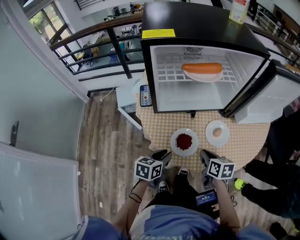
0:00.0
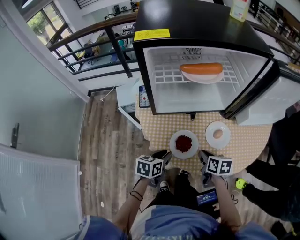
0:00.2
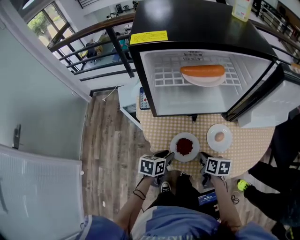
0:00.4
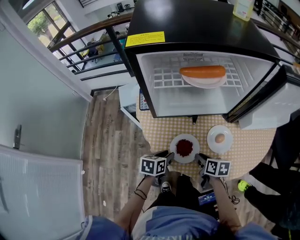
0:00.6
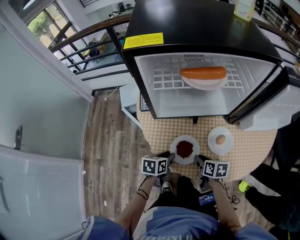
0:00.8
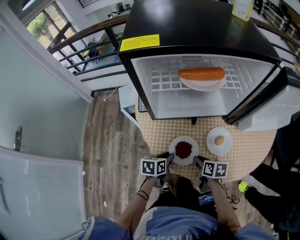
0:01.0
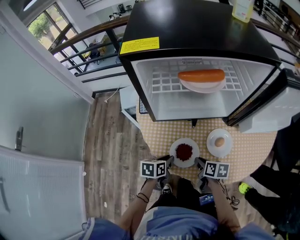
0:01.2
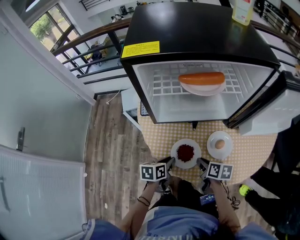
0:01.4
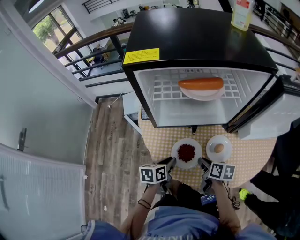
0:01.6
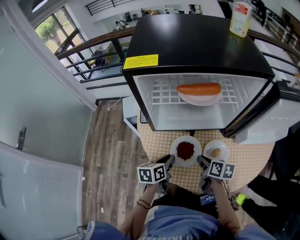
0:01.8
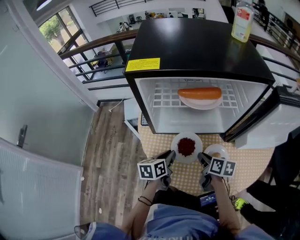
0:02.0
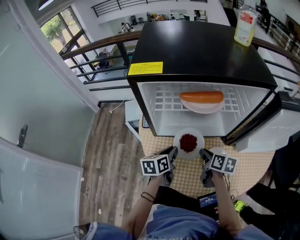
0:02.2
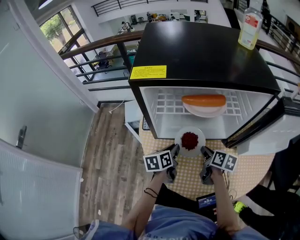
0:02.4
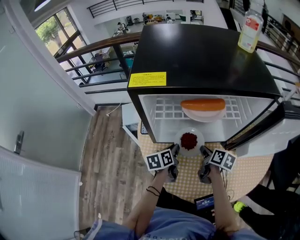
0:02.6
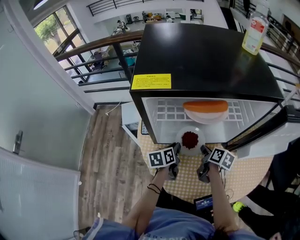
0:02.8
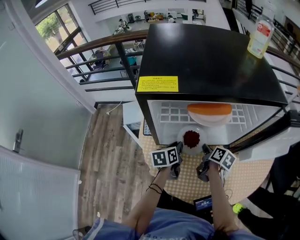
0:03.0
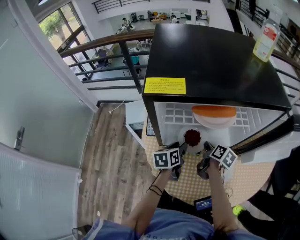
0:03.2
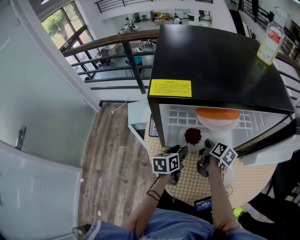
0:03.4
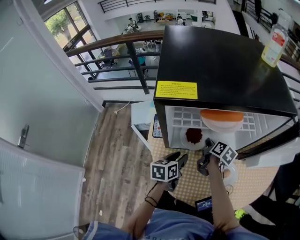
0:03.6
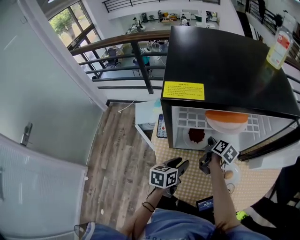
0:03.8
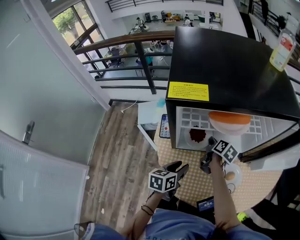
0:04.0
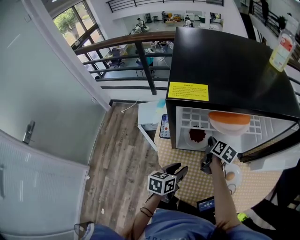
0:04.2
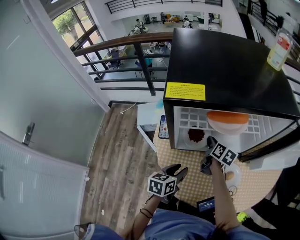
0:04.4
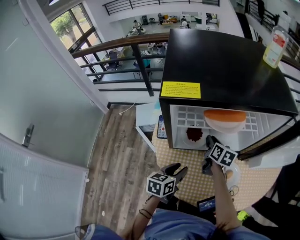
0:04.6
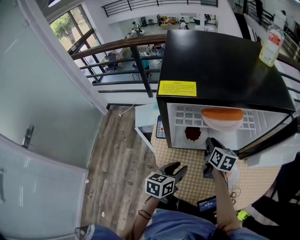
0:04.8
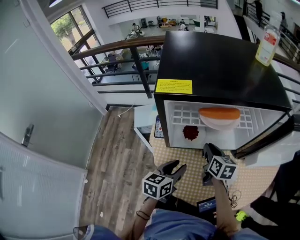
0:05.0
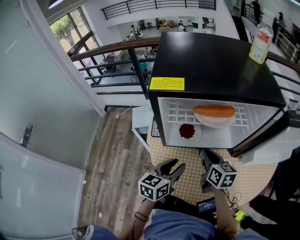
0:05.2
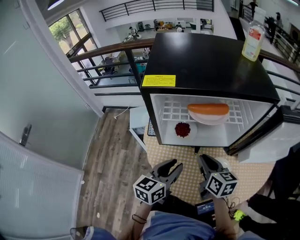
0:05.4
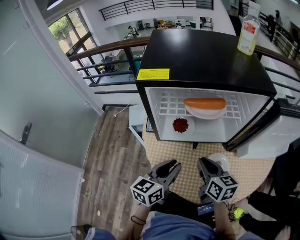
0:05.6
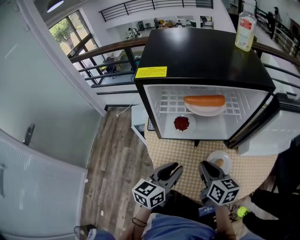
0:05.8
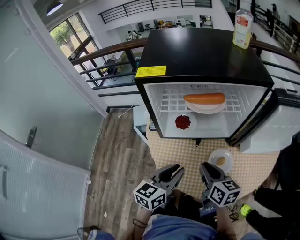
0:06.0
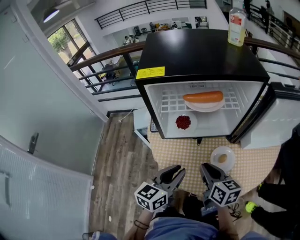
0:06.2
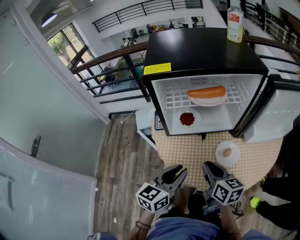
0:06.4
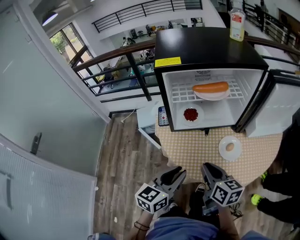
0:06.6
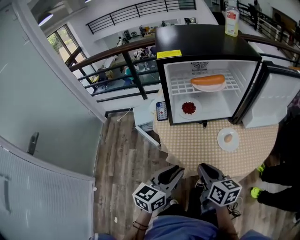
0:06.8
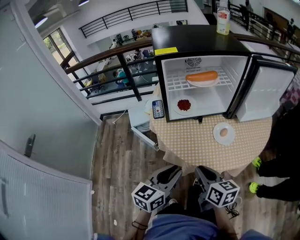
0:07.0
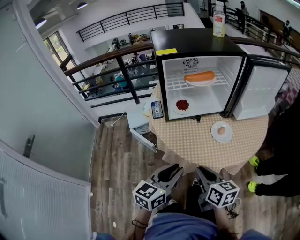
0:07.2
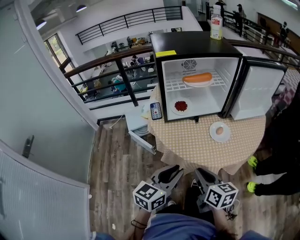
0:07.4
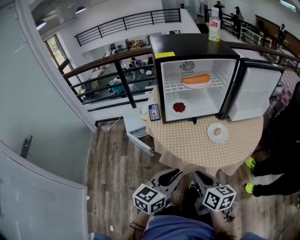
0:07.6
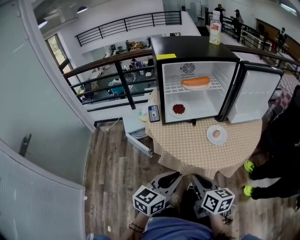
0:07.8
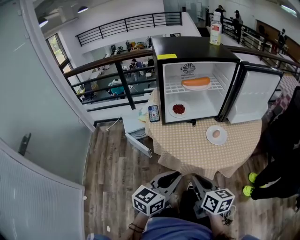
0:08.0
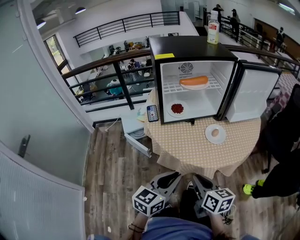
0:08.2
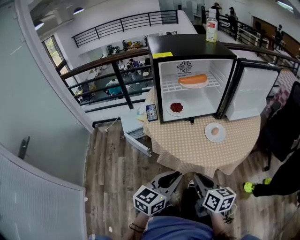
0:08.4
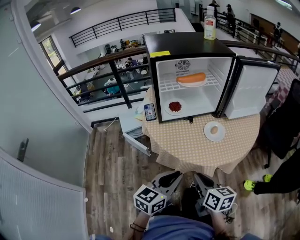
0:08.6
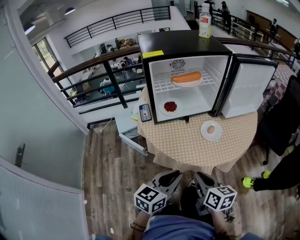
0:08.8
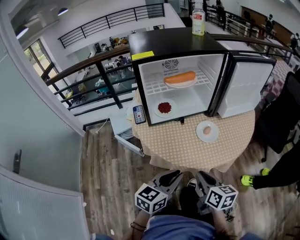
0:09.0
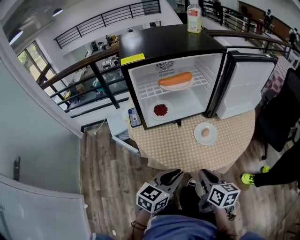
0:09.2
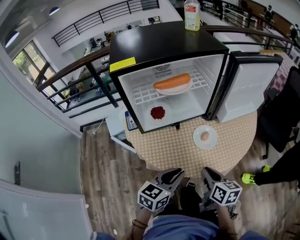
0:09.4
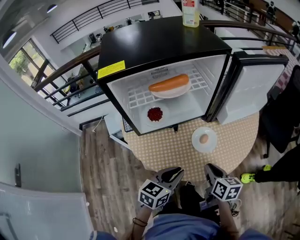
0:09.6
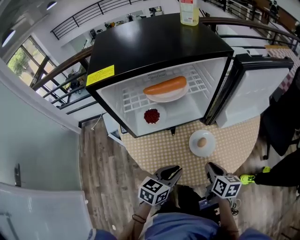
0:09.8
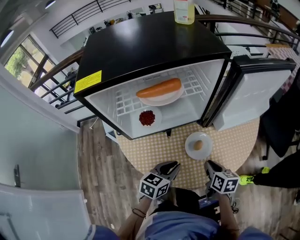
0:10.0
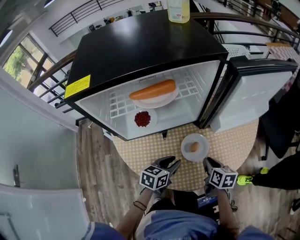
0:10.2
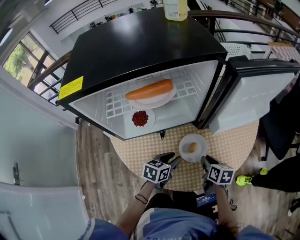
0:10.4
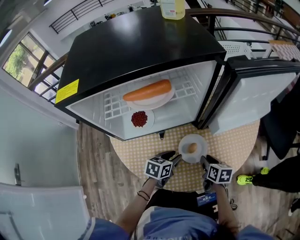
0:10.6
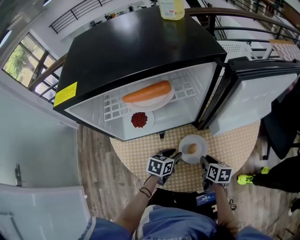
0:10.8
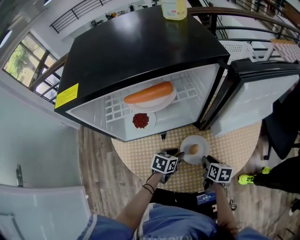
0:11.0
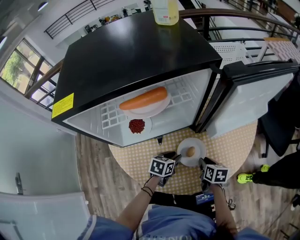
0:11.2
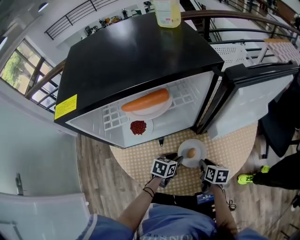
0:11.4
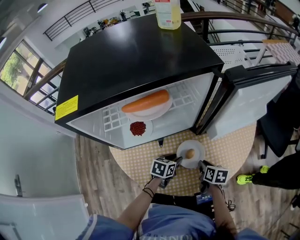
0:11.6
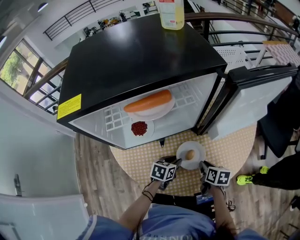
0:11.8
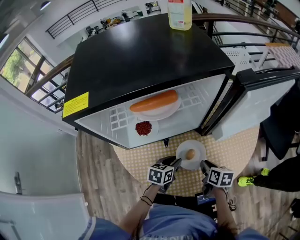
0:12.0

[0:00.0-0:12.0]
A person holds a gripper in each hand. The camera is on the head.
0:00.0 to 0:01.6: The grippers both shift forward by approximately 5 cm.
0:01.6 to 0:03.0: The grippers both shift forward by some 15 cm. The right gripper swivels about 20 degrees.
0:03.0 to 0:04.4: The right gripper travels to the left and forward by roughly 10 cm. The left gripper heads backward, covering some 10 cm, and opens.
0:04.4 to 0:06.0: The right gripper is displaced backward and upward by approximately 25 cm, and turns by roughly 20 degrees. Meanwhile the left gripper heads upward, backward and to the right, covering about 15 cm, and rotates roughly 20 degrees.
0:06.0 to 0:07.6: Both grippers travel together backward, approximately 20 cm.
0:07.6 to 0:09.0: The right gripper is displaced to the right by some 5 cm; the left gripper changes place by approximately 5 cm.
0:09.0 to 0:10.4: The left gripper shifts about 30 cm forward and downward, swivels roughly 30 degrees, and opens up, while the right gripper moves forward, downward and to the right, roughly 30 cm.
0:10.4 to 0:12.0: The grippers make only small movements.

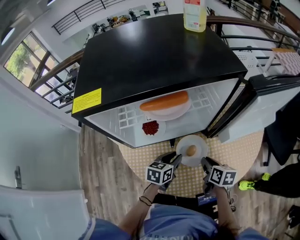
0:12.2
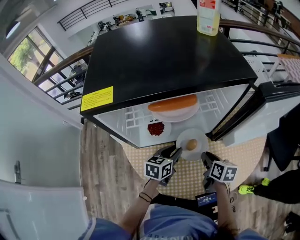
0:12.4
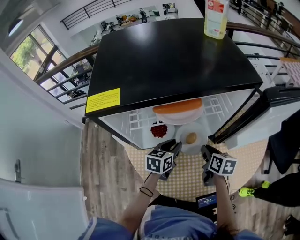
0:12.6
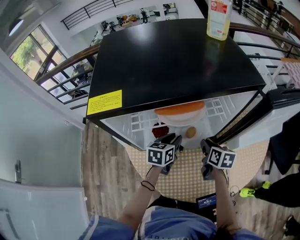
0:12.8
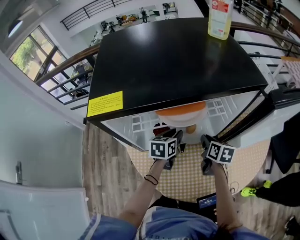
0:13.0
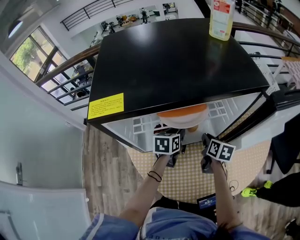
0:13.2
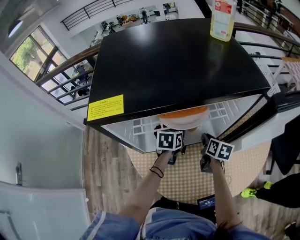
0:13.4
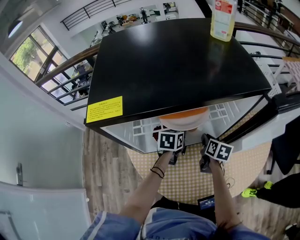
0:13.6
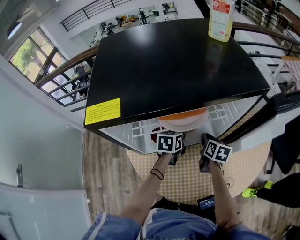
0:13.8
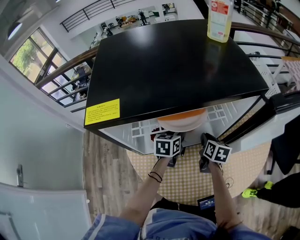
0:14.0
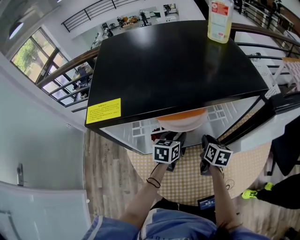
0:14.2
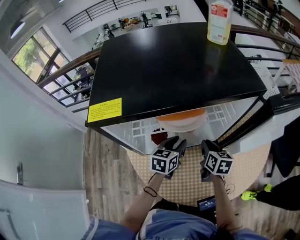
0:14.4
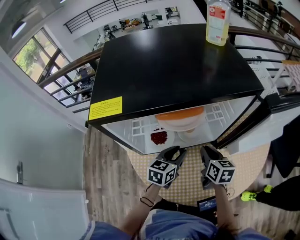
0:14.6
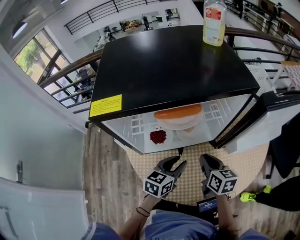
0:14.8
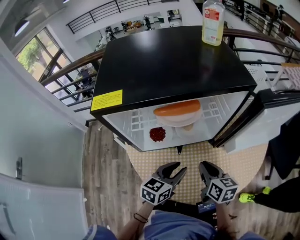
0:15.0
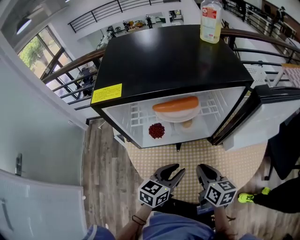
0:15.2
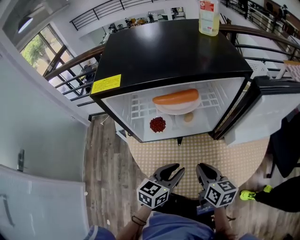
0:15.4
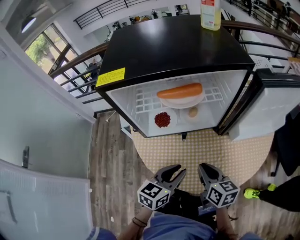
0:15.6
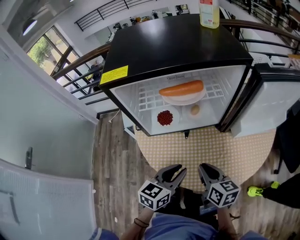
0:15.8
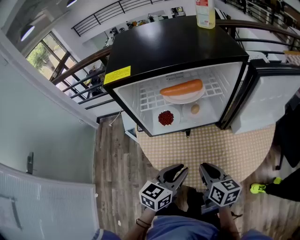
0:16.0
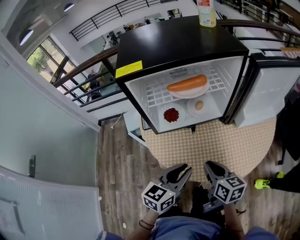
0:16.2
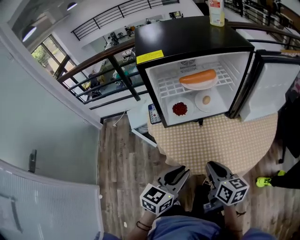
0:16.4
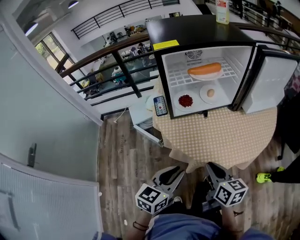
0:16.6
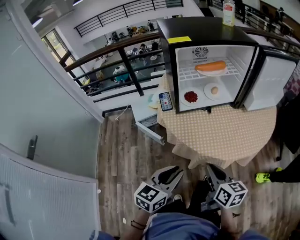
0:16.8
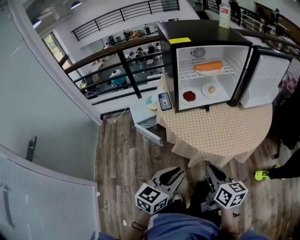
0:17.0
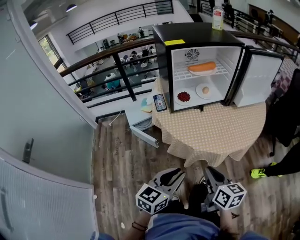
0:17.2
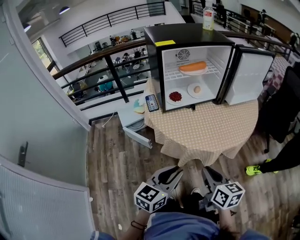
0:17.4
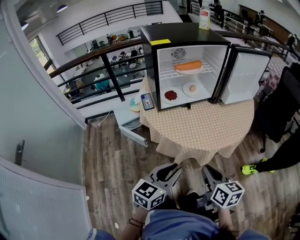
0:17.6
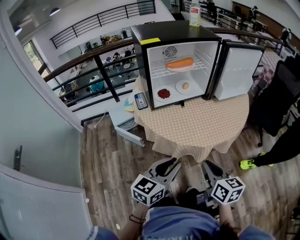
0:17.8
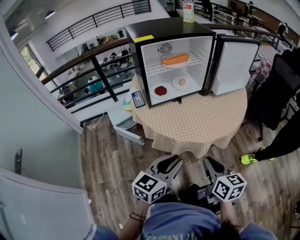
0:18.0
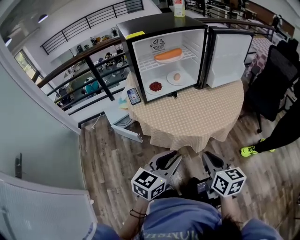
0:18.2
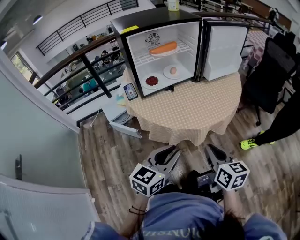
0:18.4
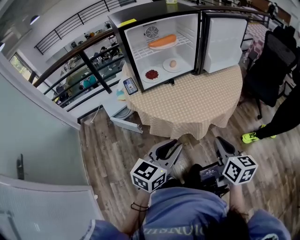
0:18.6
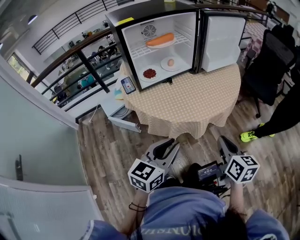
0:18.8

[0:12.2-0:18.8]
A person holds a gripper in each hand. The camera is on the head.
0:12.2 to 0:13.8: The right gripper goes about 15 cm forward and to the left. The left gripper shifts about 15 cm forward.
0:13.8 to 0:15.4: The right gripper heads backward and upward, covering about 25 cm, and turns by some 20 degrees. Meanwhile the left gripper goes approximately 25 cm backward.
0:15.4 to 0:17.2: The grippers both shift backward and to the left by roughly 35 cm.
0:17.2 to 0:18.8: The left gripper shifts roughly 5 cm to the right; the right gripper shifts approximately 15 cm to the right, and rotates roughly 20 degrees.

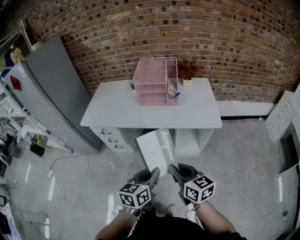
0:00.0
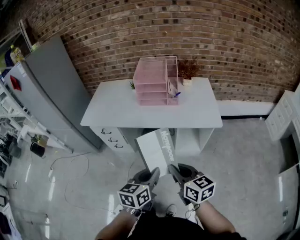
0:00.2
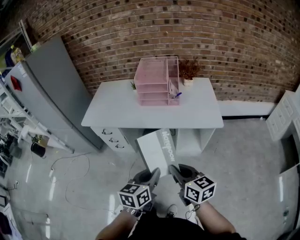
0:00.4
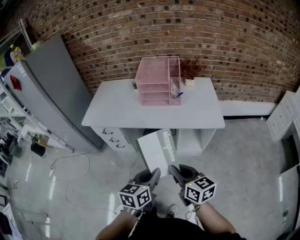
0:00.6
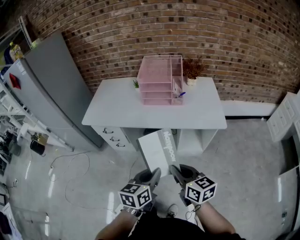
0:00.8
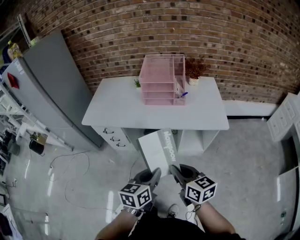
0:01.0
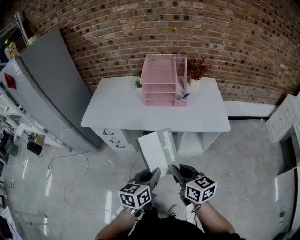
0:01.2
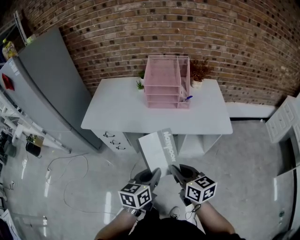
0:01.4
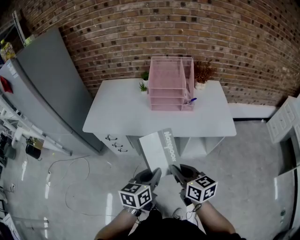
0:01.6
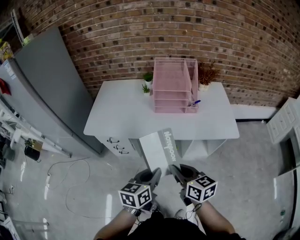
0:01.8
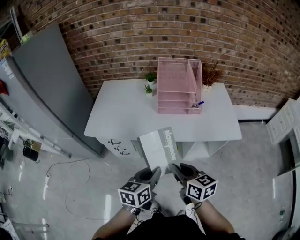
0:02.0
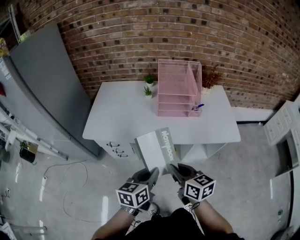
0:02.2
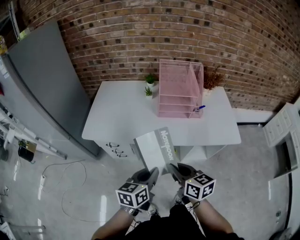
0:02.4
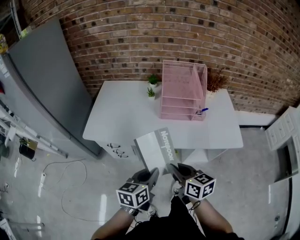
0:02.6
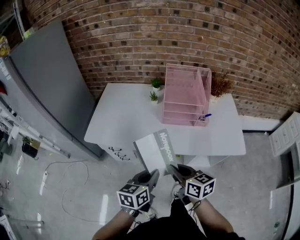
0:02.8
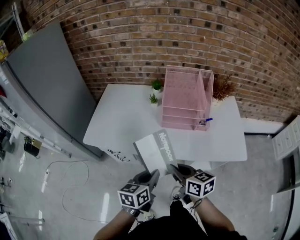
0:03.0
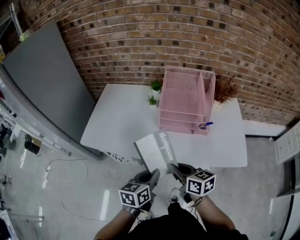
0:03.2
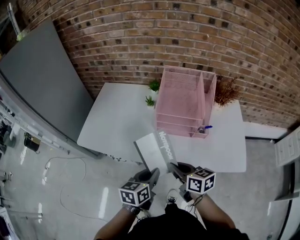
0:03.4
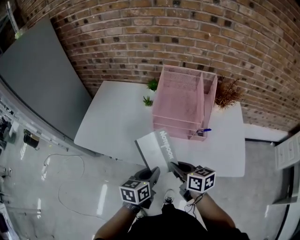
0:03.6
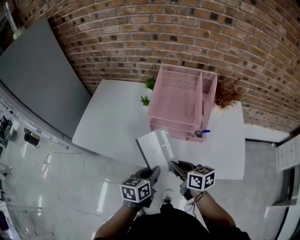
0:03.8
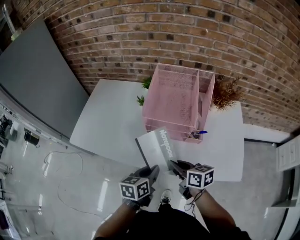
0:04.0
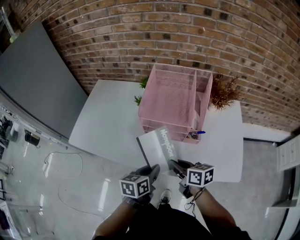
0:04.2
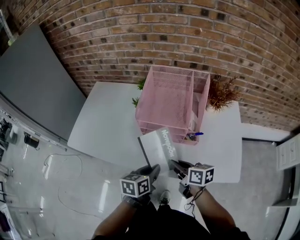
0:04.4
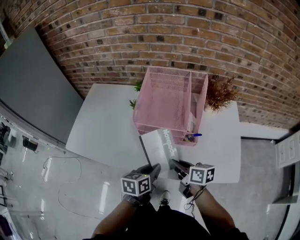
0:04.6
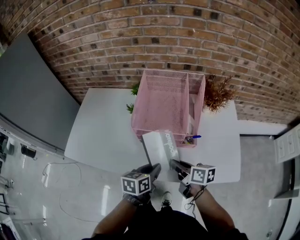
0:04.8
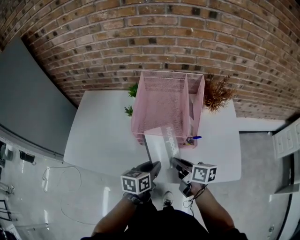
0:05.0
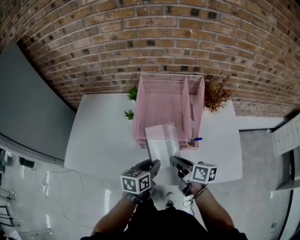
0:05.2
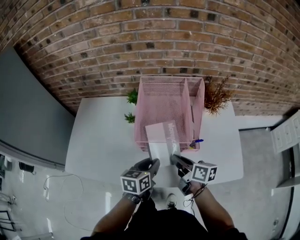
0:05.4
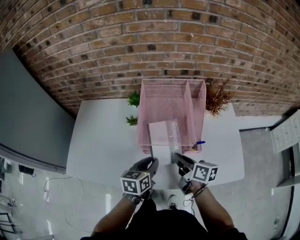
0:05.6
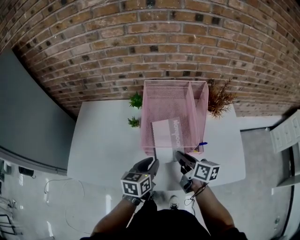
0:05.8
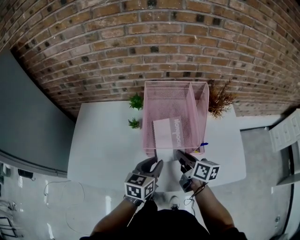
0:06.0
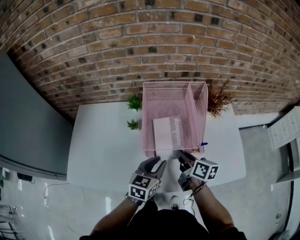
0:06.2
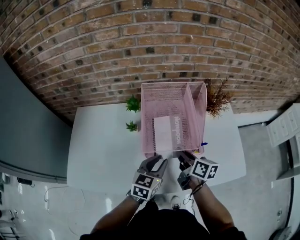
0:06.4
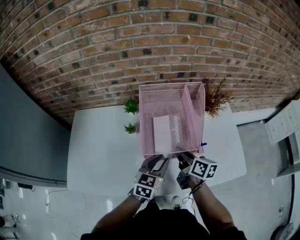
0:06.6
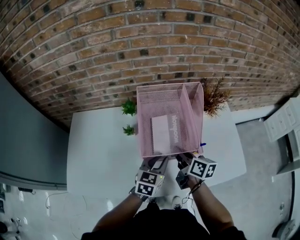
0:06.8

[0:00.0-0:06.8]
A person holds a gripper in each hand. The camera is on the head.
0:00.0 to 0:01.4: Both grippers travel together forward and to the left, approximately 10 cm.
0:01.4 to 0:02.8: The grippers both shift forward and to the left by roughly 20 cm.
0:02.8 to 0:04.0: The grippers both shift to the right, forward and downward by roughly 20 cm.
0:04.0 to 0:05.4: The two grippers go some 10 cm forward. The right gripper rotates roughly 20 degrees.
0:05.4 to 0:06.8: Both grippers travel together forward, about 5 cm. The left gripper changes its angle by about 30 degrees.
